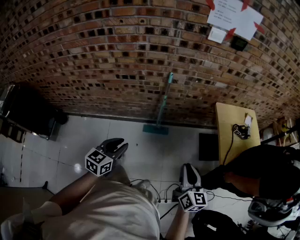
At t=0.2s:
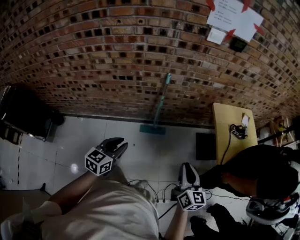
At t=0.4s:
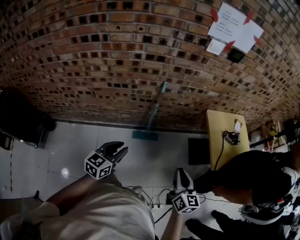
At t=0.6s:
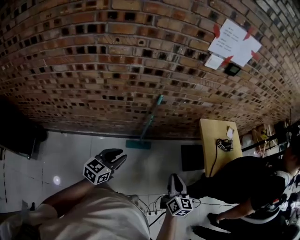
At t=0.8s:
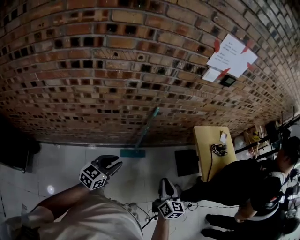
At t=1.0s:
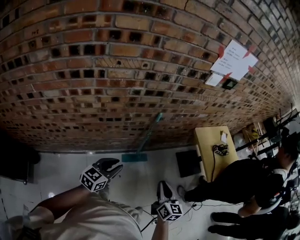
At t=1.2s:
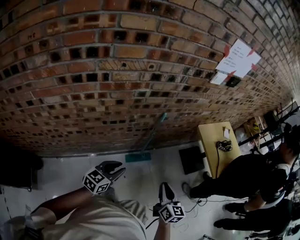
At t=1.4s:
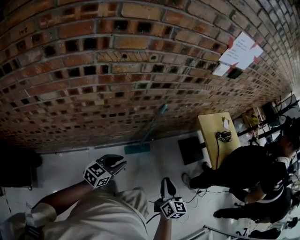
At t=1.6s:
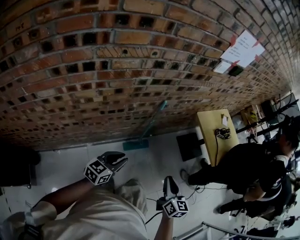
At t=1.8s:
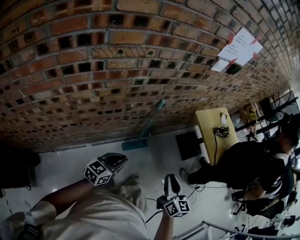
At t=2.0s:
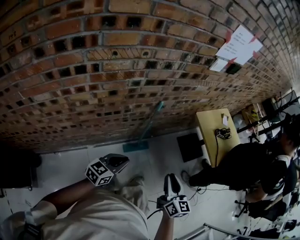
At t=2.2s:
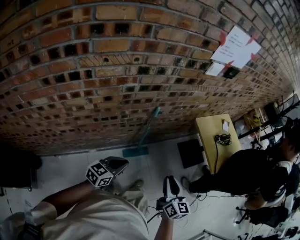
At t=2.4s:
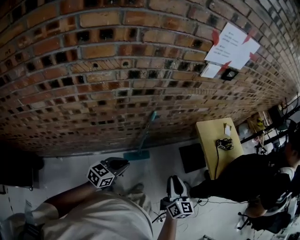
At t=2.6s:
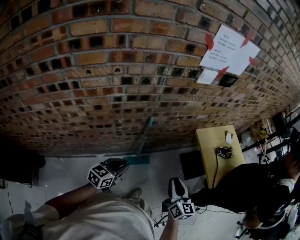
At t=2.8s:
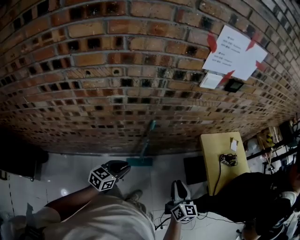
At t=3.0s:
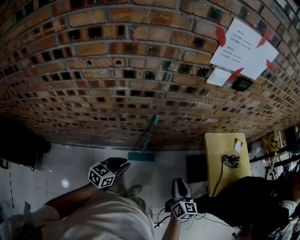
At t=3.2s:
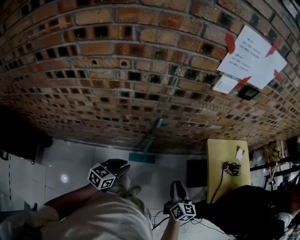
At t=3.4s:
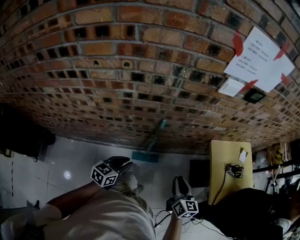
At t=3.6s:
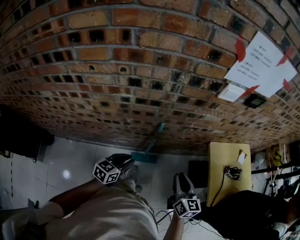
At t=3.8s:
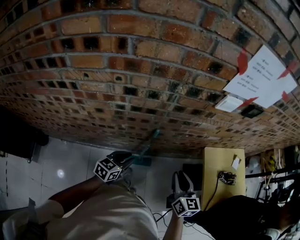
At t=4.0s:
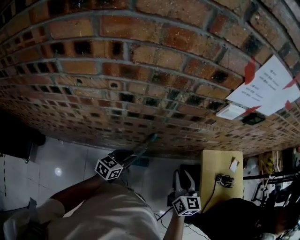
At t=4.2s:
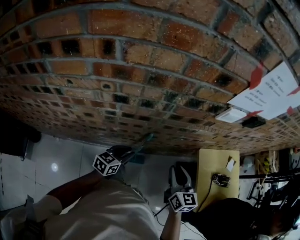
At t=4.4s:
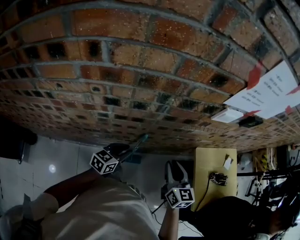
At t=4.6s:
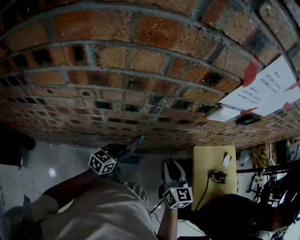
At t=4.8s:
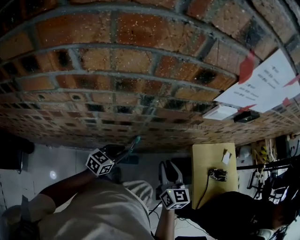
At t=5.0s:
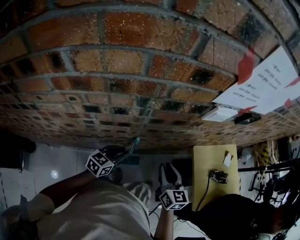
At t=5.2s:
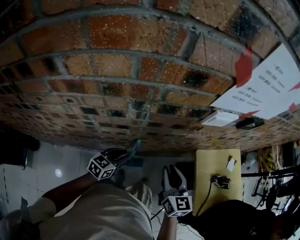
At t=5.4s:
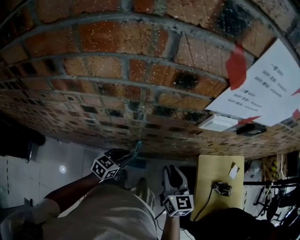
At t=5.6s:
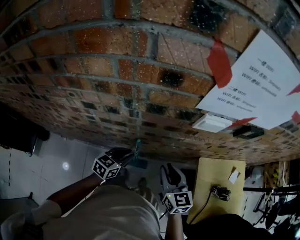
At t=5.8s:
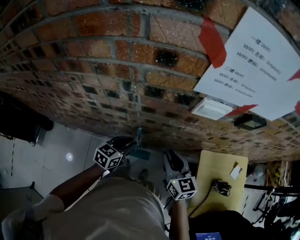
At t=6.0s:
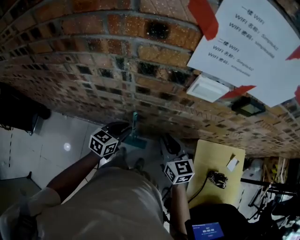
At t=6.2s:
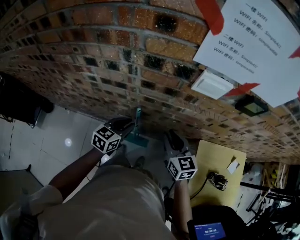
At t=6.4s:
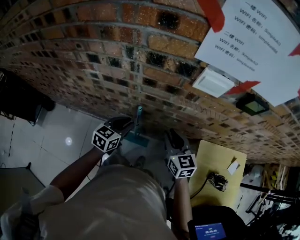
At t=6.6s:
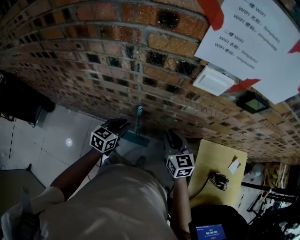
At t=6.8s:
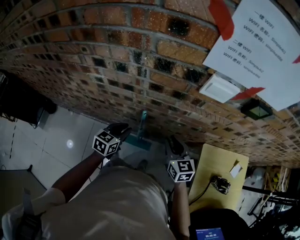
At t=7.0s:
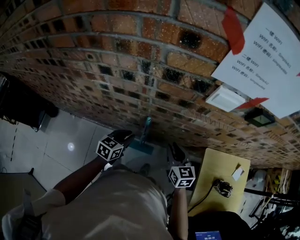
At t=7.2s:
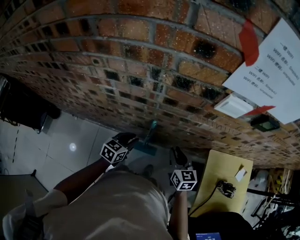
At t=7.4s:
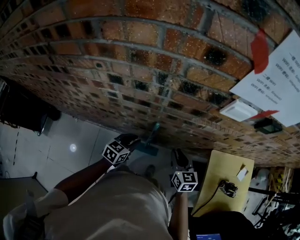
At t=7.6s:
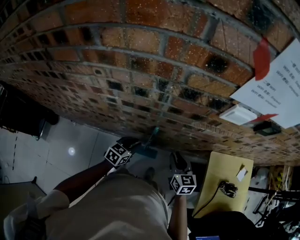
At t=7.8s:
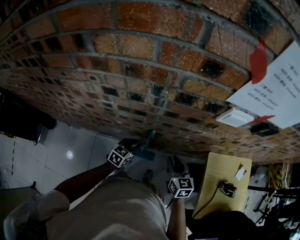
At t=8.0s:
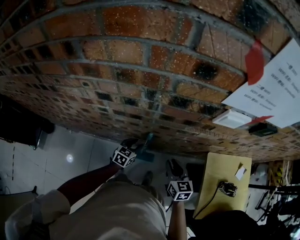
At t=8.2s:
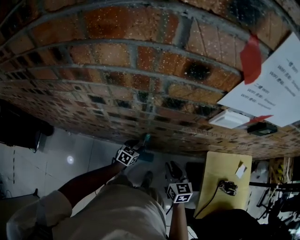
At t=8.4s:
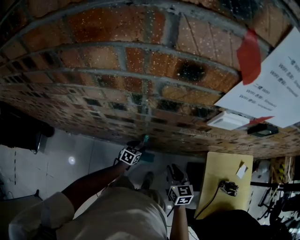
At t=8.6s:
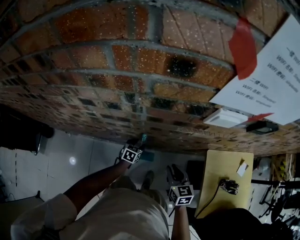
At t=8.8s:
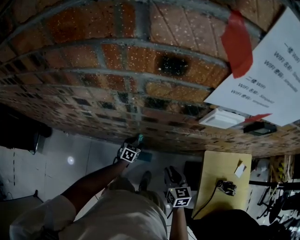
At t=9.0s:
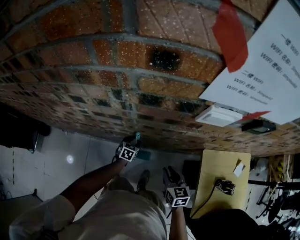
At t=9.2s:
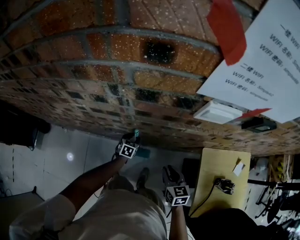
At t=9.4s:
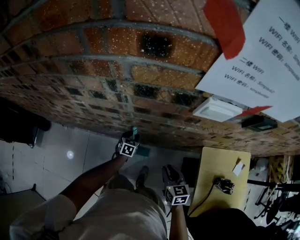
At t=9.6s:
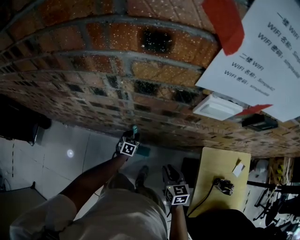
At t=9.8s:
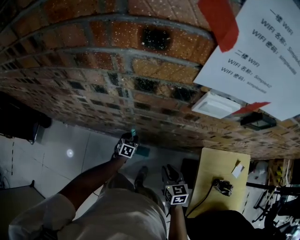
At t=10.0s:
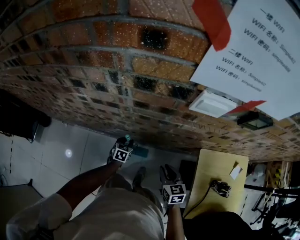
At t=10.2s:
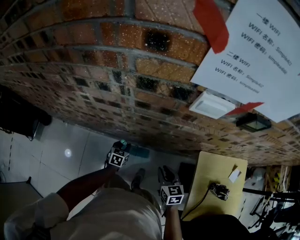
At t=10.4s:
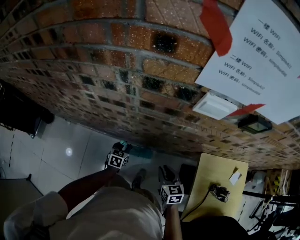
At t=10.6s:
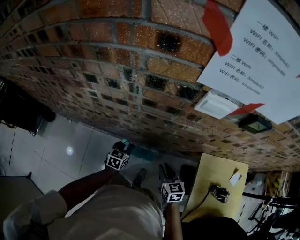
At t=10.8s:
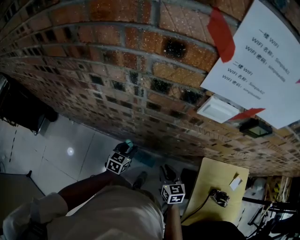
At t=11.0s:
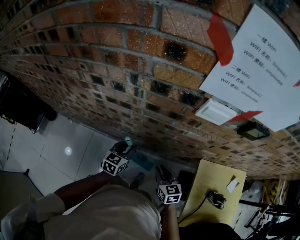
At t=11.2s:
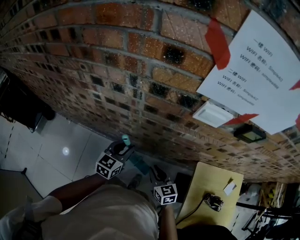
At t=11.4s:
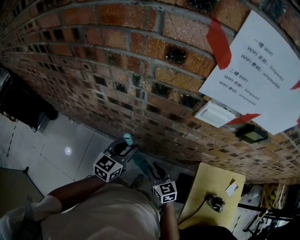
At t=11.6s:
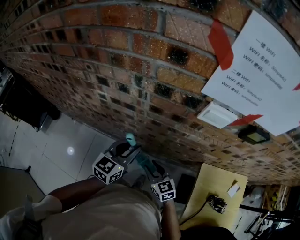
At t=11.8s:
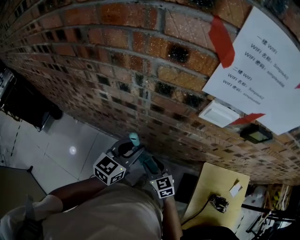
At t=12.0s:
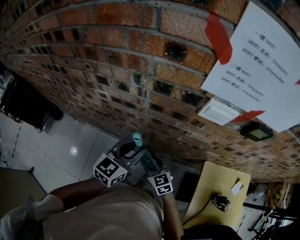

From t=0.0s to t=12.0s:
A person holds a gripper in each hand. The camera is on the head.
From t=0.0s to t=1.6s: The left gripper shifts by some 25 cm, and changes its angle by roughly 30 degrees. Meanwhile the right gripper shifts by roughly 30 cm, and swivels some 20 degrees.
From t=1.6s to t=3.0s: Both grippers travel together forward and to the right, approximately 20 cm.
From t=3.0s to t=4.4s: Both grippers travel together forward, some 20 cm.
From t=4.4s to t=6.0s: The left gripper is displaced to the right by roughly 5 cm. Meanwhile the right gripper heads forward, covering roughly 5 cm, and rotates about 20 degrees.
From t=6.0s to t=7.6s: The right gripper moves downward, approximately 10 cm; the left gripper moves downward and to the left, about 10 cm.
From t=7.6s to t=9.0s: The right gripper shifts about 5 cm to the right. Meanwhile the left gripper heads downward and forward, covering about 20 cm, and opens up.
From t=9.0s to t=10.4s: The left gripper shifts some 10 cm backward.
From t=10.4s to t=12.0s: The left gripper goes some 30 cm upward, and points its fingers roughly 30 degrees further upward. The right gripper travels to the left by roughly 10 cm, changes its angle by about 30 degrees, and opens.

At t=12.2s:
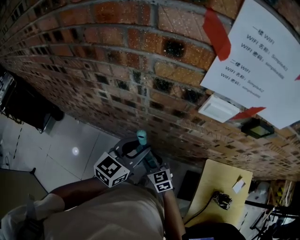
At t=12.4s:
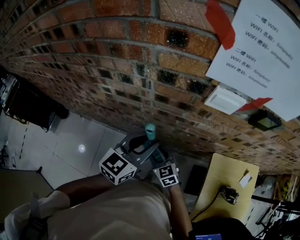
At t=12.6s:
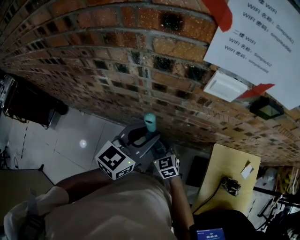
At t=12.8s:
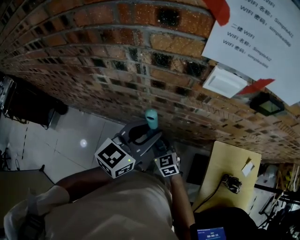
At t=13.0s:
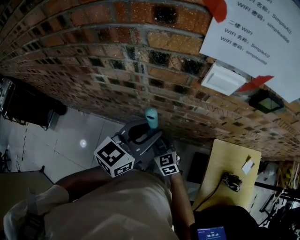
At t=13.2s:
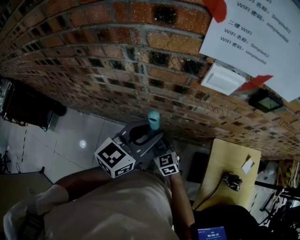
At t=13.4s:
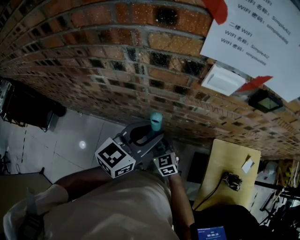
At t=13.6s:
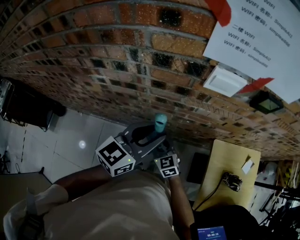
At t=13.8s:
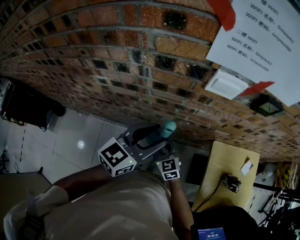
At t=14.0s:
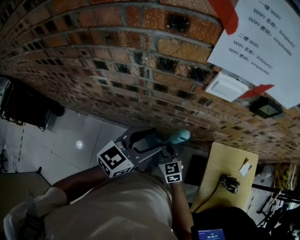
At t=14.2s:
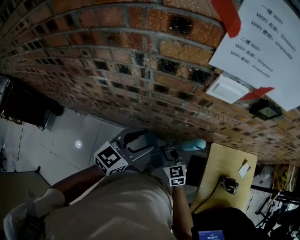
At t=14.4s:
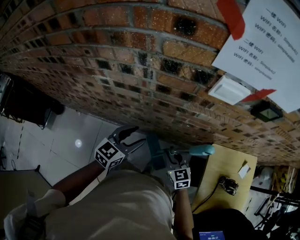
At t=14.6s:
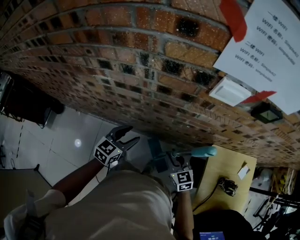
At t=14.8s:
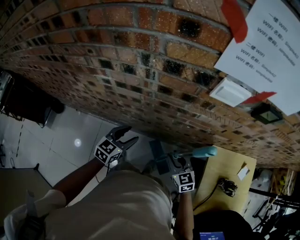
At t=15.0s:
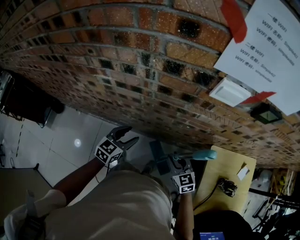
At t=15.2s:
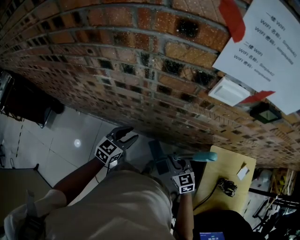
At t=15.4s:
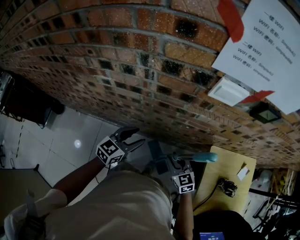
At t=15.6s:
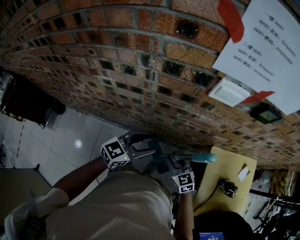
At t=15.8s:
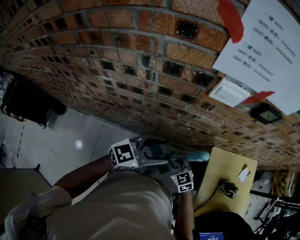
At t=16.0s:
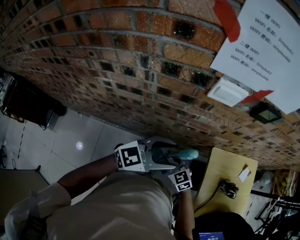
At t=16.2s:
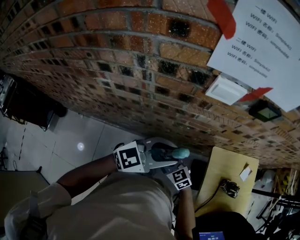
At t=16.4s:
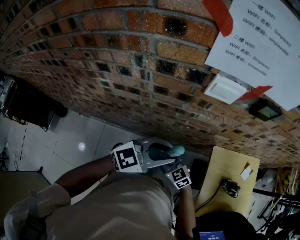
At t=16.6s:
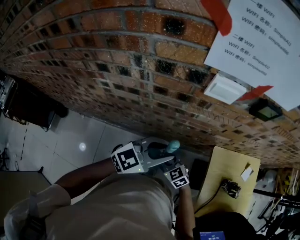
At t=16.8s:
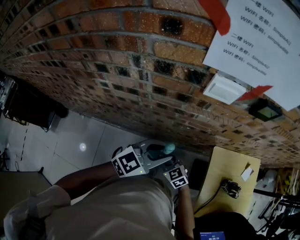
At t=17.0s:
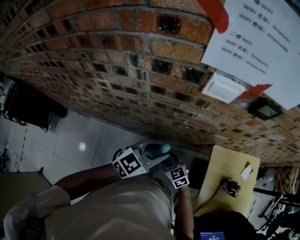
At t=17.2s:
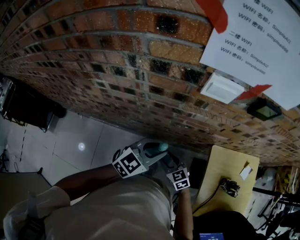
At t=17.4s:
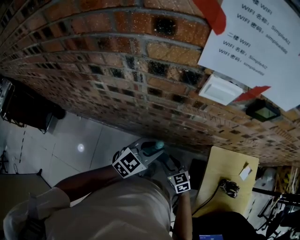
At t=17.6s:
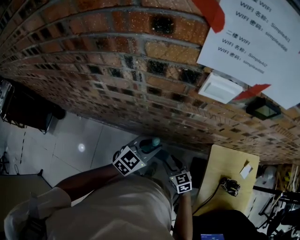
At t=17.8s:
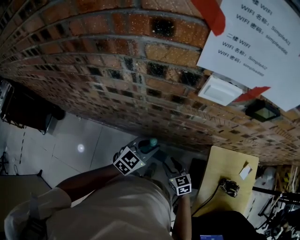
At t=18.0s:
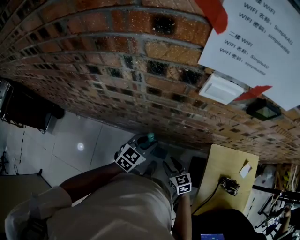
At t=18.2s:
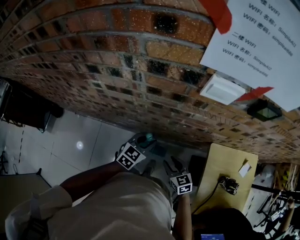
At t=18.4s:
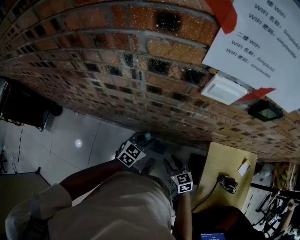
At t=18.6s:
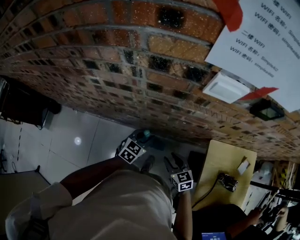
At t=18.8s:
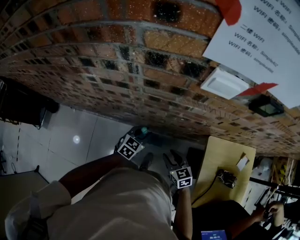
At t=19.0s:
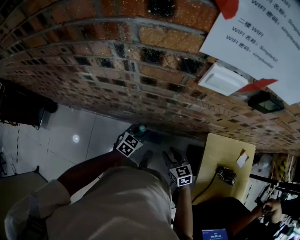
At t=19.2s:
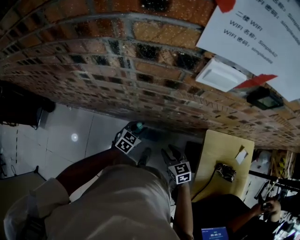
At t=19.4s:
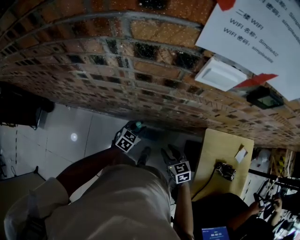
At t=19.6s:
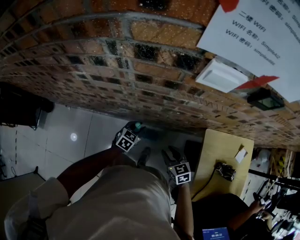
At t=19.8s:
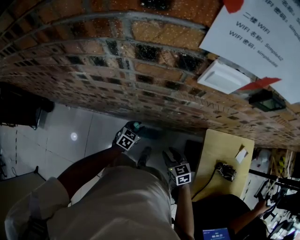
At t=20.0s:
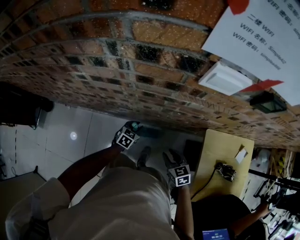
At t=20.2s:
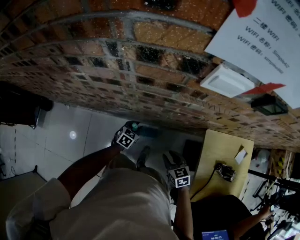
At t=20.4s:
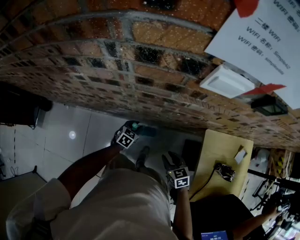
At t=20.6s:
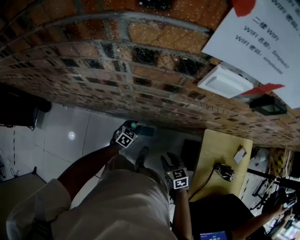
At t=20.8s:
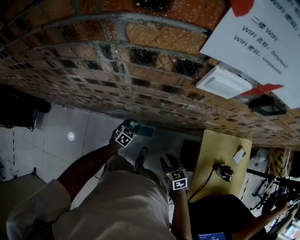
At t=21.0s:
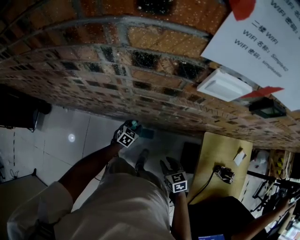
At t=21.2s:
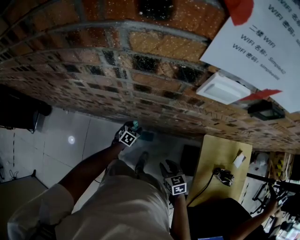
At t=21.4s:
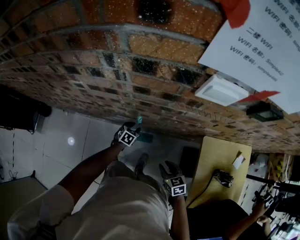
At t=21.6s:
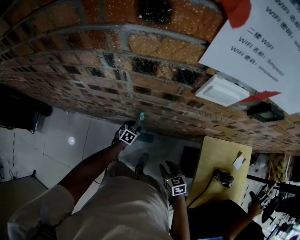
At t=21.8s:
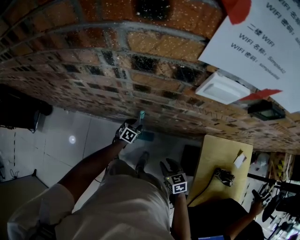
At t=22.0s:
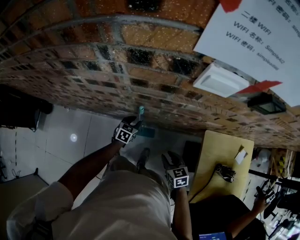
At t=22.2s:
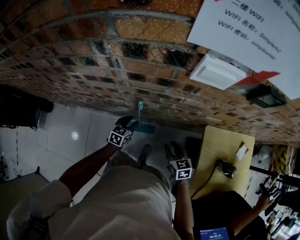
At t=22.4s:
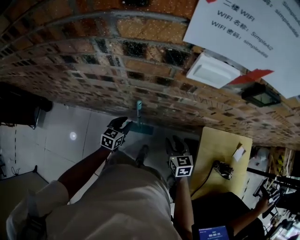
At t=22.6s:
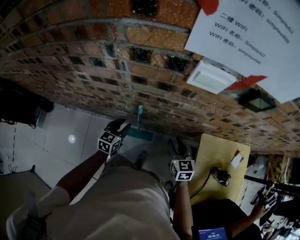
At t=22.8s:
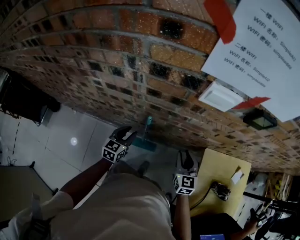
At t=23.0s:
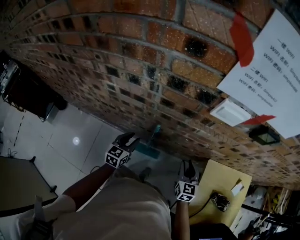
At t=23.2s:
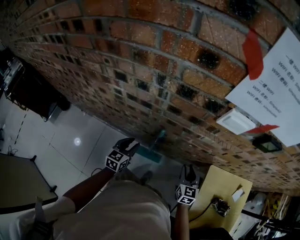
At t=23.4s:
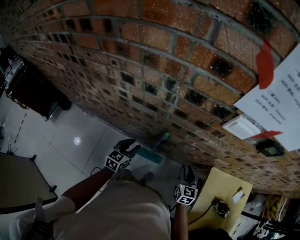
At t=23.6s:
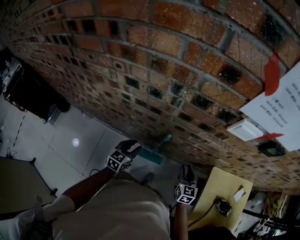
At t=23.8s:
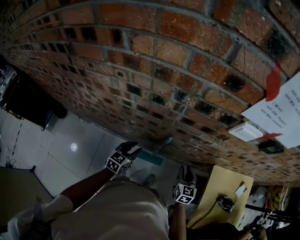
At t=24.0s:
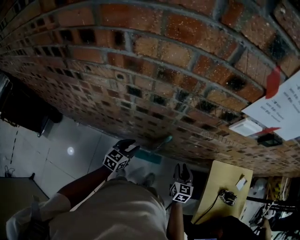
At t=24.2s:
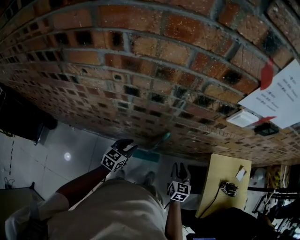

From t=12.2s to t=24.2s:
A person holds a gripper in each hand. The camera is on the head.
From t=12.2s to t=13.8s: The left gripper opens.
From t=13.8s to t=15.2s: The left gripper shifts roughly 20 cm downward and to the left, and turns by about 20 degrees, while the right gripper travels to the right by about 10 cm.
From t=15.2s to t=16.6s: The left gripper moves to the right and upward, approximately 25 cm, and turns by about 40 degrees, while the right gripper travels to the left by about 5 cm.
From t=16.6s to t=18.2s: The left gripper is displaced downward by some 20 cm, and turns by about 30 degrees, while the right gripper heads to the right, covering approximately 5 cm, and turns by some 20 degrees.
From t=18.2s to t=19.8s: The left gripper moves downward, approximately 15 cm.
From t=19.8s to t=21.2s: The right gripper ends up approximately 5 cm from where it was; the left gripper shifts some 5 cm downward.
From t=21.2s to t=22.6s: The left gripper goes roughly 15 cm upward, and changes its angle by approximately 30 degrees. Meanwhile the right gripper travels upward and forward by about 15 cm, and turns by about 20 degrees.
From t=22.6s to t=24.2s: The grippers both shift to the left by roughly 10 cm.
